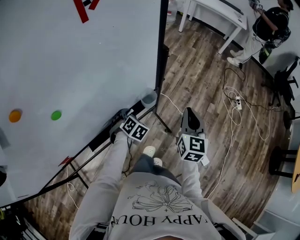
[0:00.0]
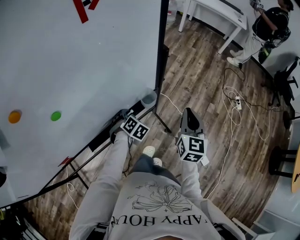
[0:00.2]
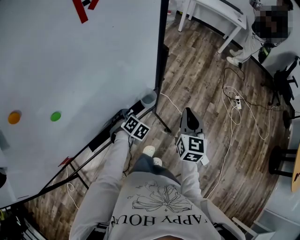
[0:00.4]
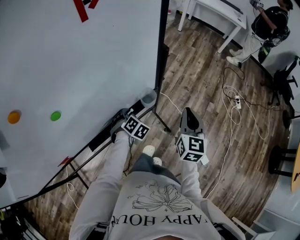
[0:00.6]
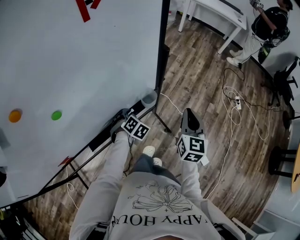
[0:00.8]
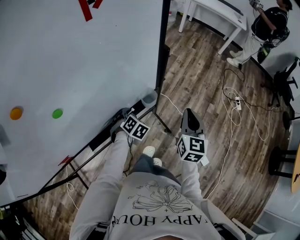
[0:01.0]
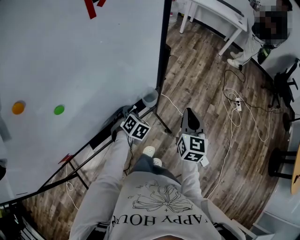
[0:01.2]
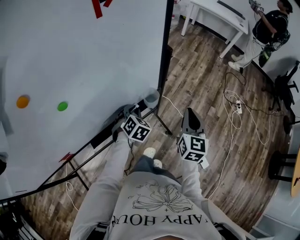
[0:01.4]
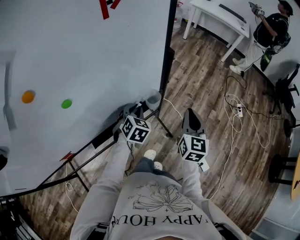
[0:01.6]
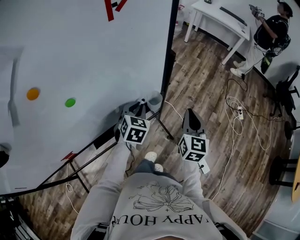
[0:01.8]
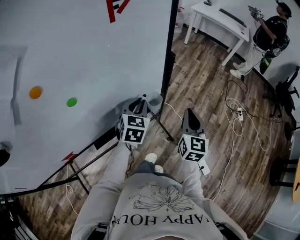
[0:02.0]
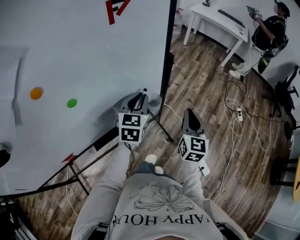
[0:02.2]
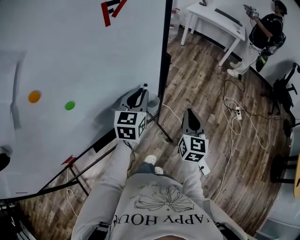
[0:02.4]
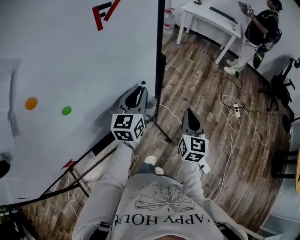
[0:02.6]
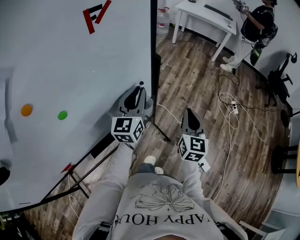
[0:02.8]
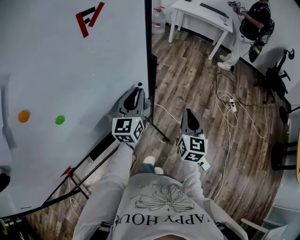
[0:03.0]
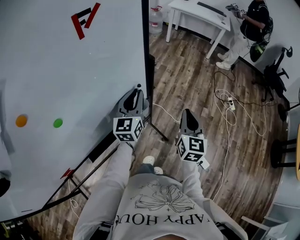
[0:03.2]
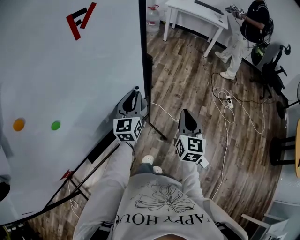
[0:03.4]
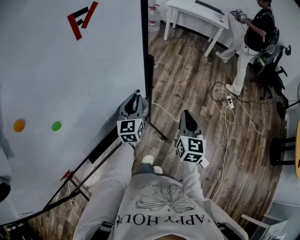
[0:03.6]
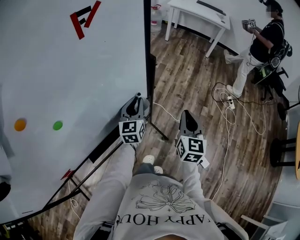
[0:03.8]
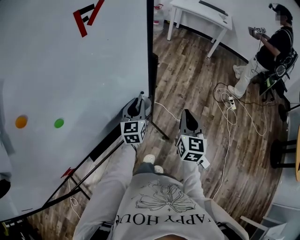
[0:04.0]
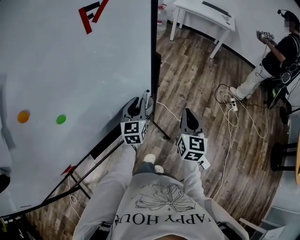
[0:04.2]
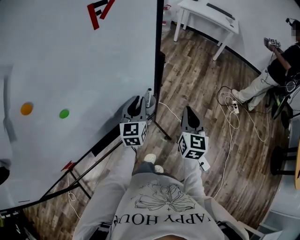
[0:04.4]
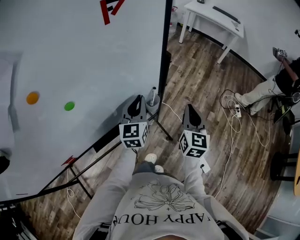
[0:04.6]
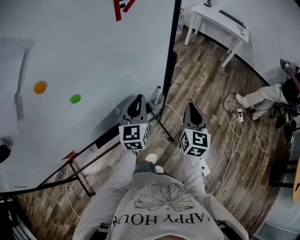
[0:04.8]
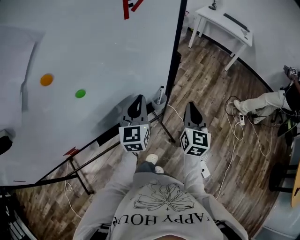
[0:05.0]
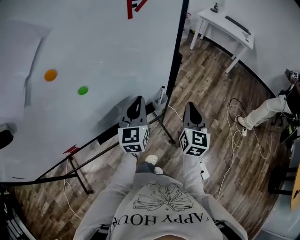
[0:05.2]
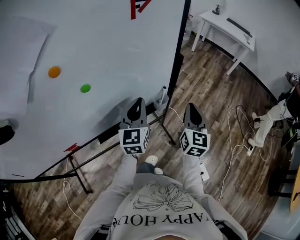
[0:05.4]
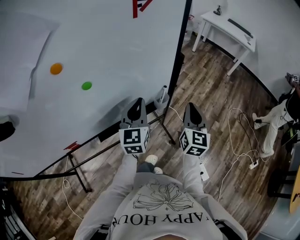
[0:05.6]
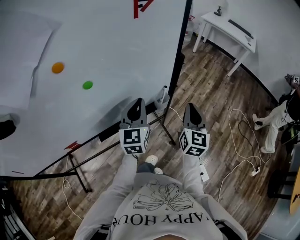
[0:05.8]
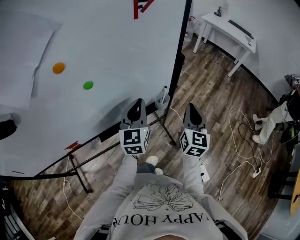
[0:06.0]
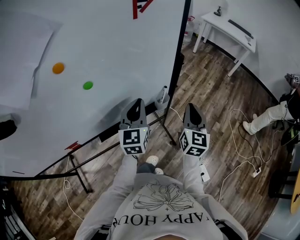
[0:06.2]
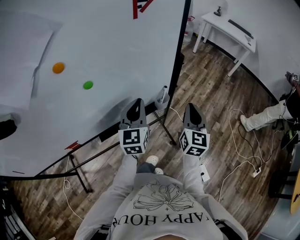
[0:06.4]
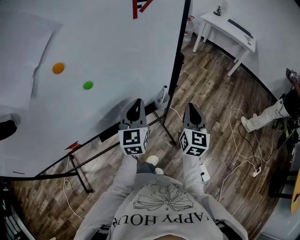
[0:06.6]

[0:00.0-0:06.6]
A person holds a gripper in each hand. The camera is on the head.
0:00.0 to 0:01.6: The left gripper heads upward, covering approximately 10 cm, and turns by approximately 20 degrees.
0:01.6 to 0:03.2: The left gripper heads upward, forward and to the right, covering some 15 cm, and points its fingers some 40 degrees further upward.
0:03.2 to 0:05.0: The left gripper heads backward and to the left, covering some 10 cm, and goes downward and returns, roughly 10 cm each way. The right gripper is displaced to the left by some 5 cm.
0:05.0 to 0:06.6: There are only small adjustments of the grippers.

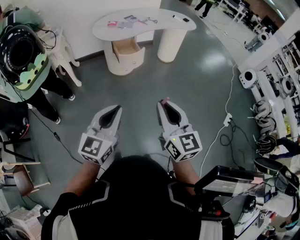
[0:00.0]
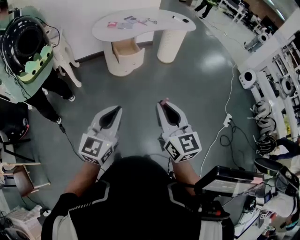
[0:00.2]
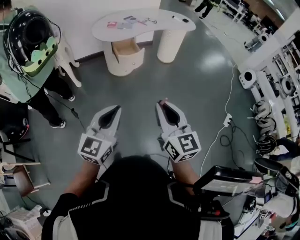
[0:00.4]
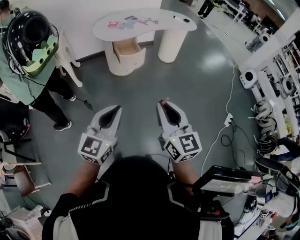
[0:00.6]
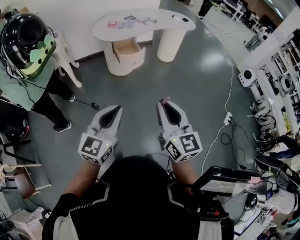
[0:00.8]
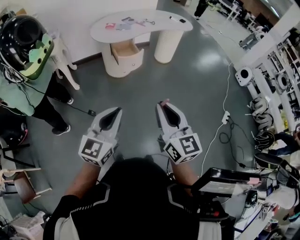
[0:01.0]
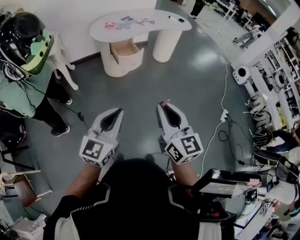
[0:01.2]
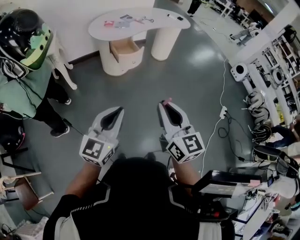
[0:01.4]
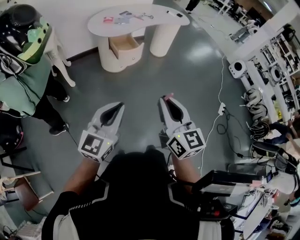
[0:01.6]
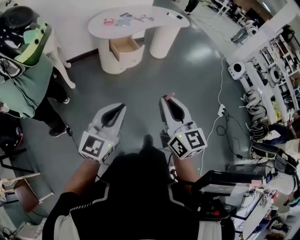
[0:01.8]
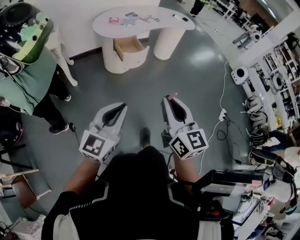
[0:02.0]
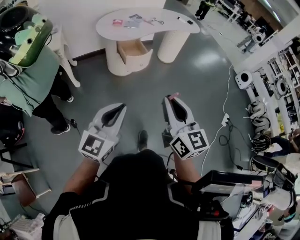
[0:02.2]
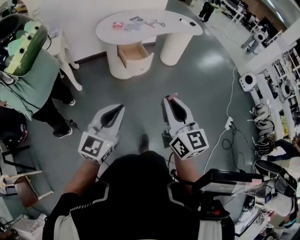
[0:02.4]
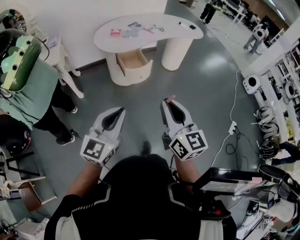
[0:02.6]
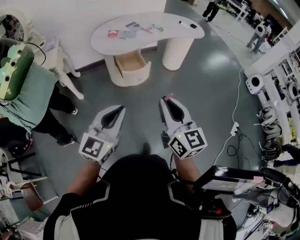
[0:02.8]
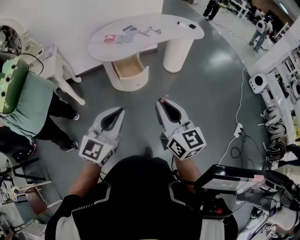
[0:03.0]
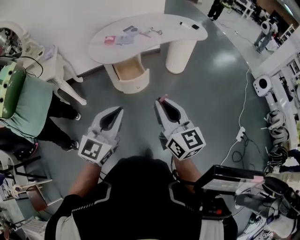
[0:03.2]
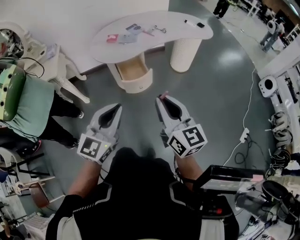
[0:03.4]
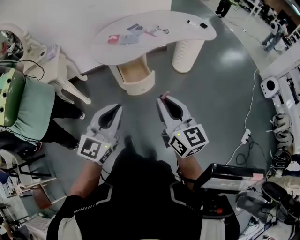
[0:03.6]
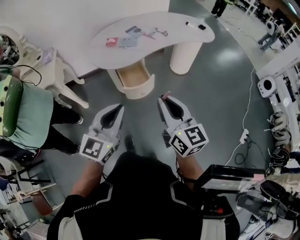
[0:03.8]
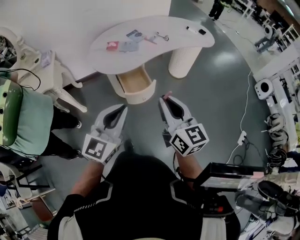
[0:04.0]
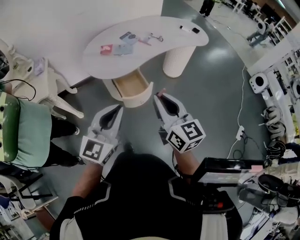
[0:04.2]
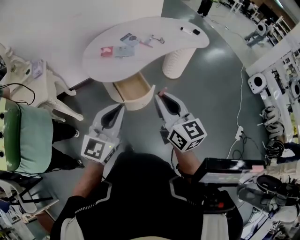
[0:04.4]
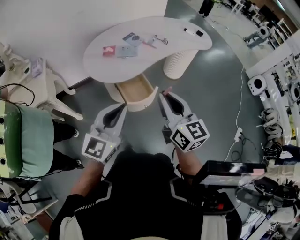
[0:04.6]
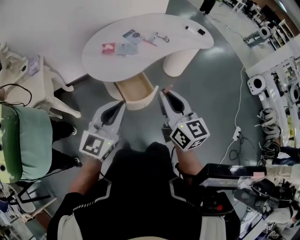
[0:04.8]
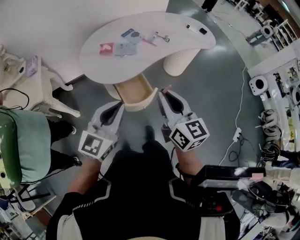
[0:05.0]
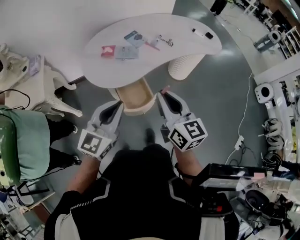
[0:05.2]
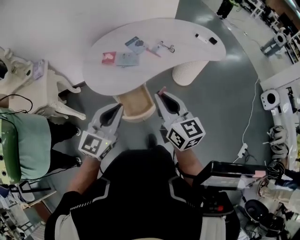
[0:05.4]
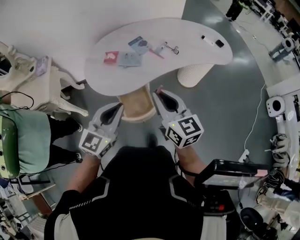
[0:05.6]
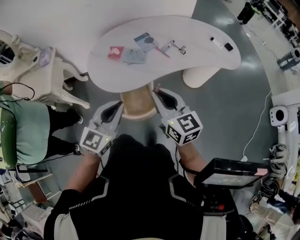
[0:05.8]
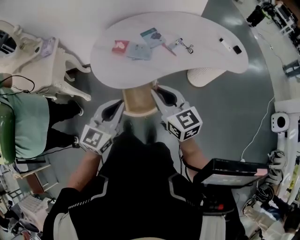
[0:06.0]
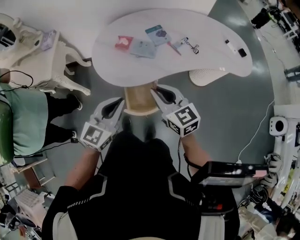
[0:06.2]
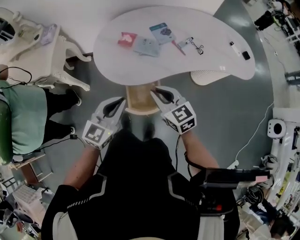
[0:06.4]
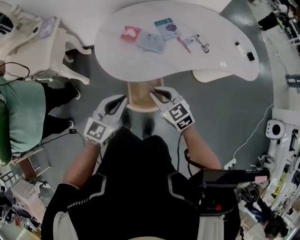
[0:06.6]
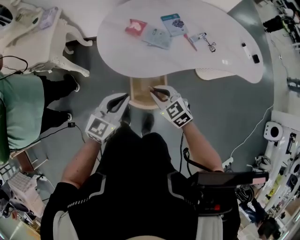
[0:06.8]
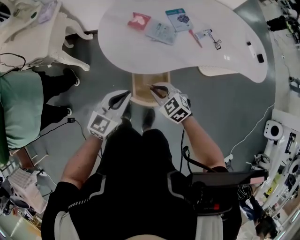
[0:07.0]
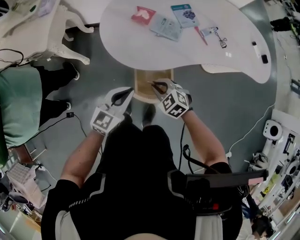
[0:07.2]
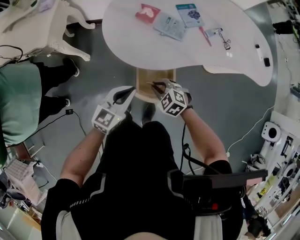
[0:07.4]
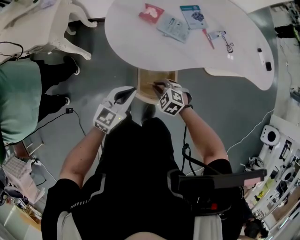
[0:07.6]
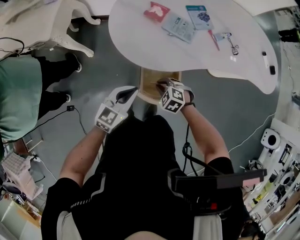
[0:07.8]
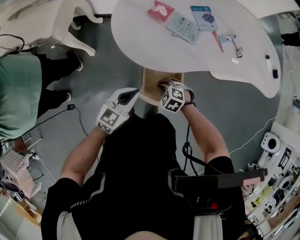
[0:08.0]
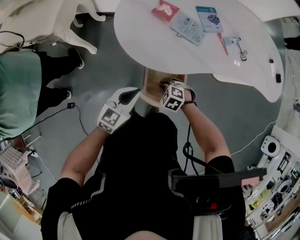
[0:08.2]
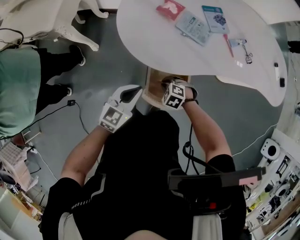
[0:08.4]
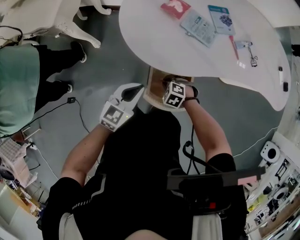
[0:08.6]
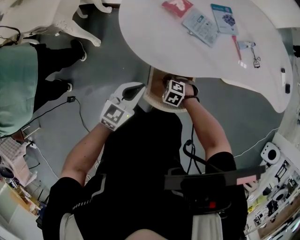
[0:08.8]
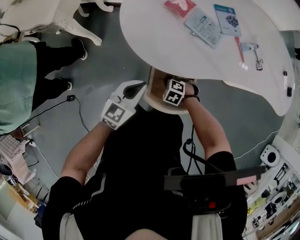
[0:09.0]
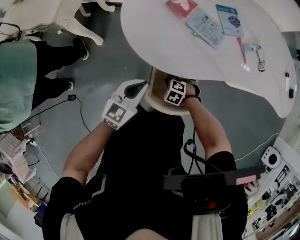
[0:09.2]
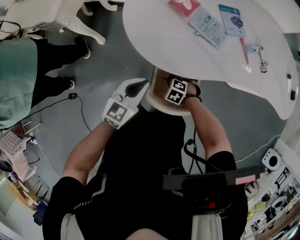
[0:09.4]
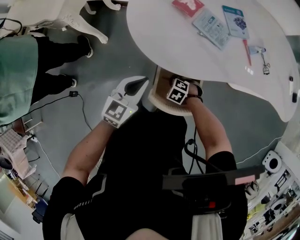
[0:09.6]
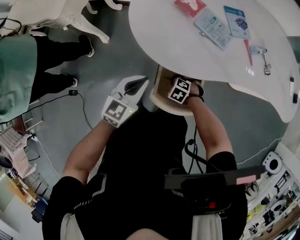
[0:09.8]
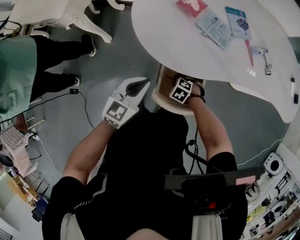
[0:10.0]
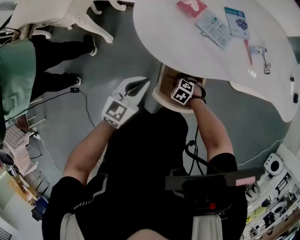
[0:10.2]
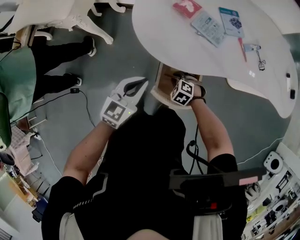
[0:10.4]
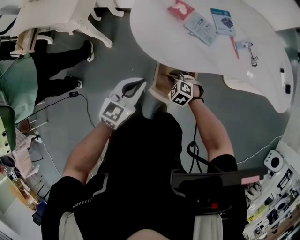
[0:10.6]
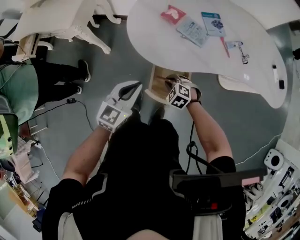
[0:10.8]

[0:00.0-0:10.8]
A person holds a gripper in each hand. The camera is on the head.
0:00.0 to 0:01.6: Both grippers move to the left, about 10 cm.
0:01.6 to 0:03.0: The grippers both shift forward by roughly 25 cm.
0:03.0 to 0:04.6: The two grippers go some 25 cm forward.
0:04.6 to 0:06.2: The left gripper changes place by about 20 cm, and changes its angle by approximately 20 degrees; the right gripper shifts by roughly 25 cm, and swivels some 40 degrees.
0:06.2 to 0:07.8: The right gripper travels downward by roughly 30 cm, and tips its fingers downward by roughly 50 degrees, while the left gripper shifts approximately 20 cm downward.
0:07.8 to 0:09.2: The right gripper is displaced downward by approximately 15 cm. Meanwhile the left gripper shifts about 5 cm downward.
0:09.2 to 0:10.8: The two grippers go some 15 cm upward.

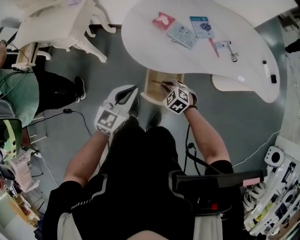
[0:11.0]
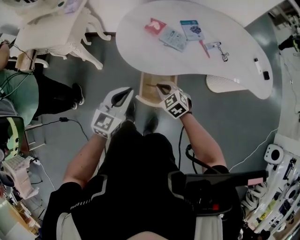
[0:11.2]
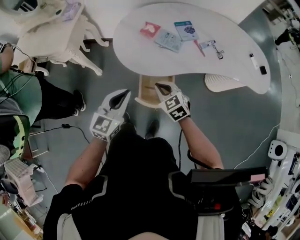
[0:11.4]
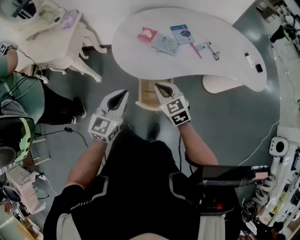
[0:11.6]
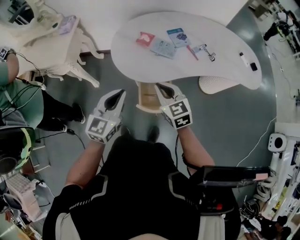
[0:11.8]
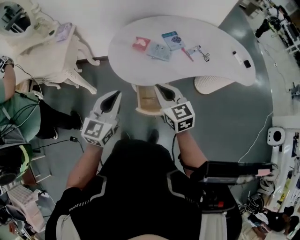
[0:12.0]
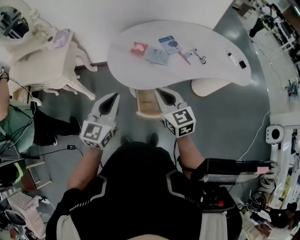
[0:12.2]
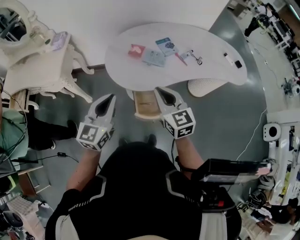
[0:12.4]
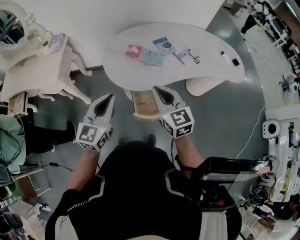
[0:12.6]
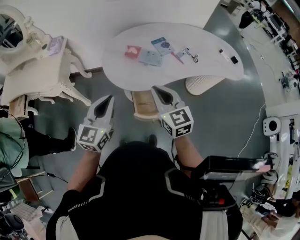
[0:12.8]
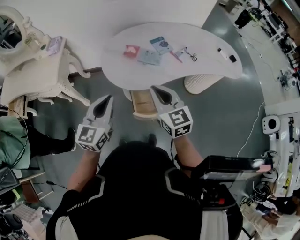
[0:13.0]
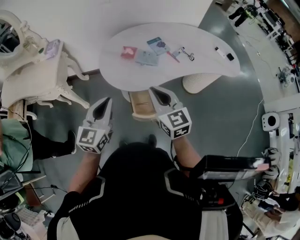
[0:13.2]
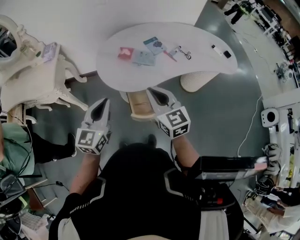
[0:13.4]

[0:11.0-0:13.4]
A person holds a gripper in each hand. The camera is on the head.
0:11.0 to 0:12.2: The left gripper shifts about 15 cm upward. Meanwhile the right gripper travels upward by about 25 cm, and points its fingers roughly 40 degrees further upward.
0:12.2 to 0:13.4: The grippers make only small movements.

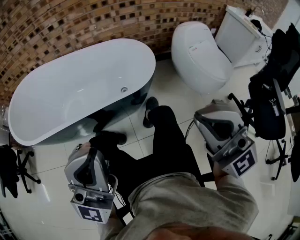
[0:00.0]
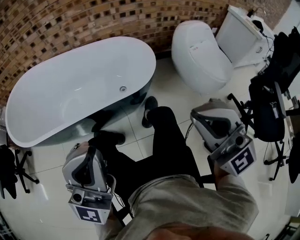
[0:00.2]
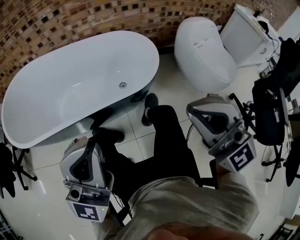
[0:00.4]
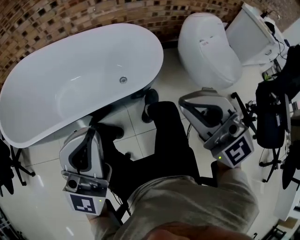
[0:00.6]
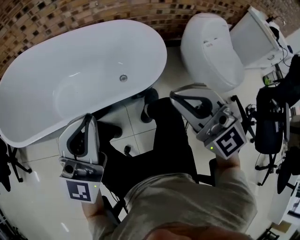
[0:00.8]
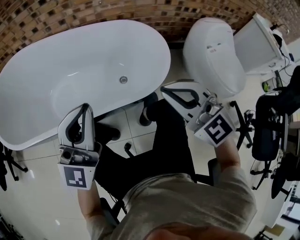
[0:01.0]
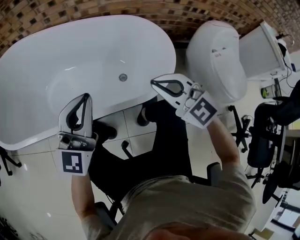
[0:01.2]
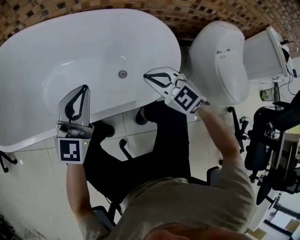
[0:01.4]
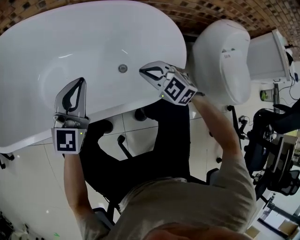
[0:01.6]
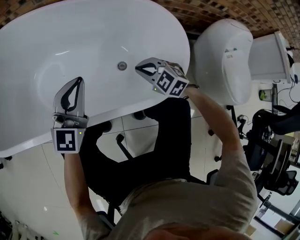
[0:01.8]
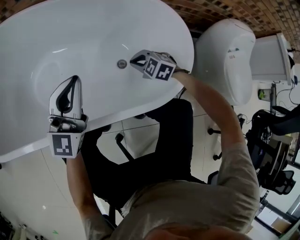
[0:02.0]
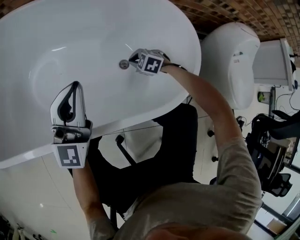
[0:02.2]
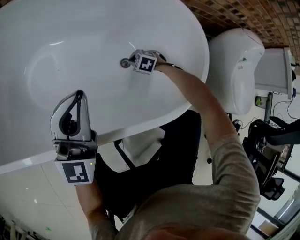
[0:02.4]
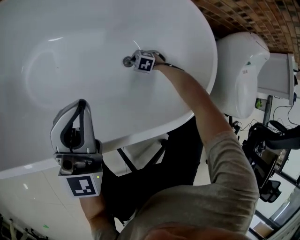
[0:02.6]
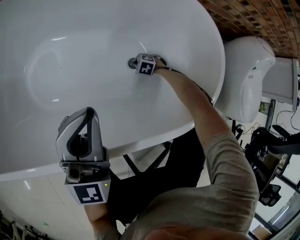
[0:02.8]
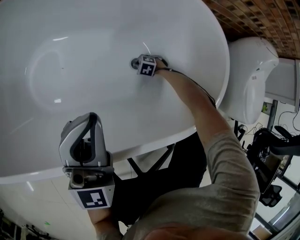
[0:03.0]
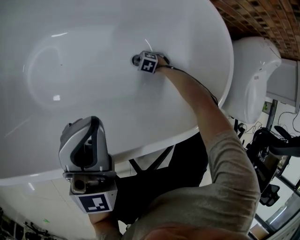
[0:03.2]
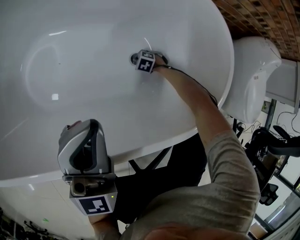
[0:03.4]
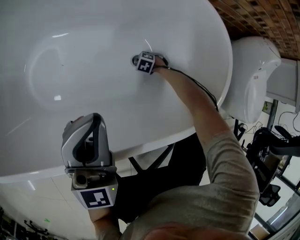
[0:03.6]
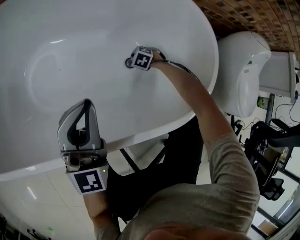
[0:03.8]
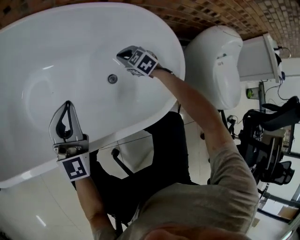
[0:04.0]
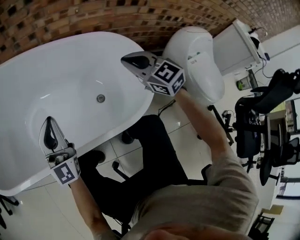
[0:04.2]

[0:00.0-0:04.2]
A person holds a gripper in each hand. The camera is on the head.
0:00.0 to 0:01.4: Both grippers travel together forward and downward, some 50 cm. The right gripper angles its fingers downward, by approximately 50 degrees. Meanwhile the left gripper angles its fingers downward, by approximately 30 degrees.
0:01.4 to 0:02.8: The right gripper heads downward, covering approximately 50 cm, and tilts its fingers some 50 degrees downward, while the left gripper changes place by approximately 10 cm.
0:02.8 to 0:04.2: The left gripper moves some 5 cm; the right gripper heads upward, covering some 60 cm, and tilts its fingers roughly 60 degrees upward.
